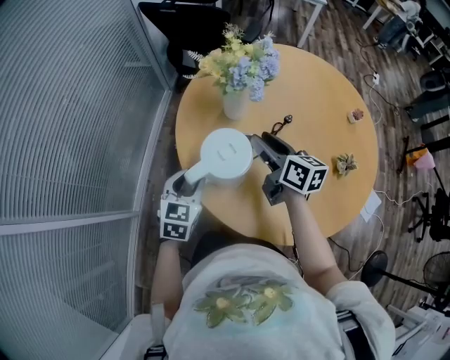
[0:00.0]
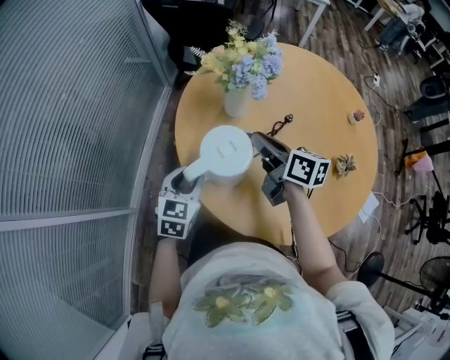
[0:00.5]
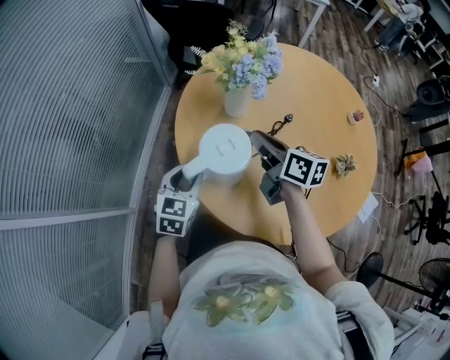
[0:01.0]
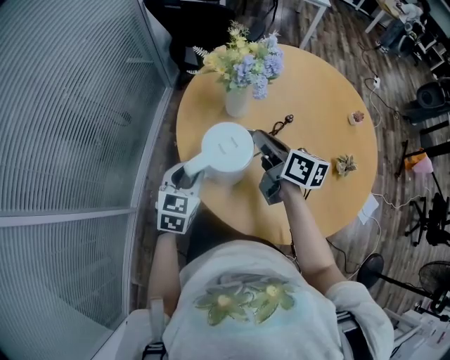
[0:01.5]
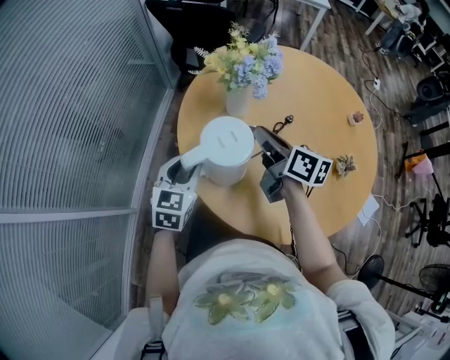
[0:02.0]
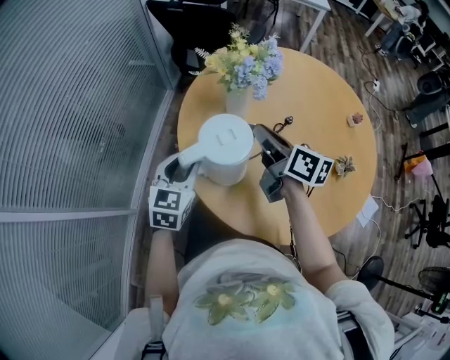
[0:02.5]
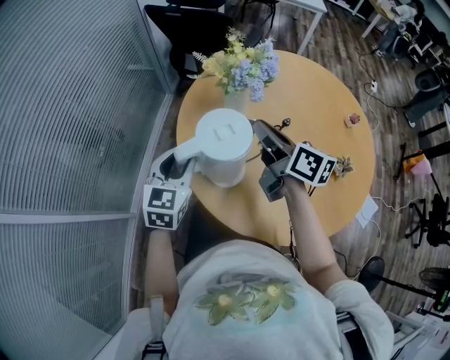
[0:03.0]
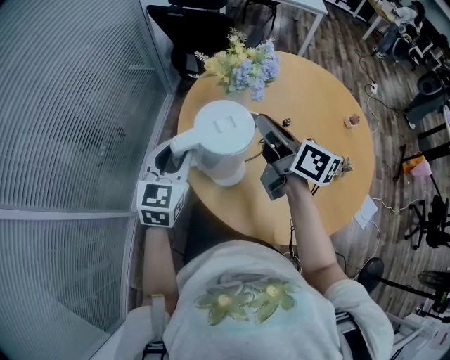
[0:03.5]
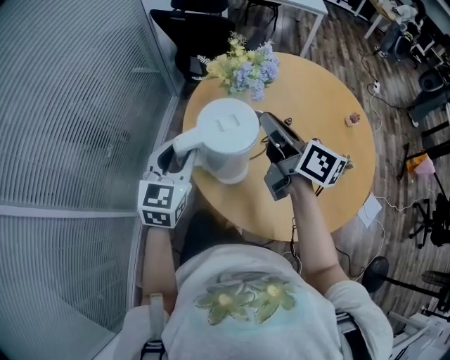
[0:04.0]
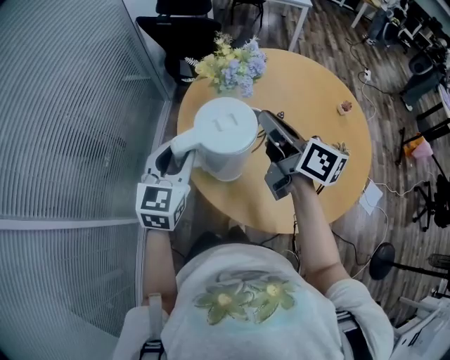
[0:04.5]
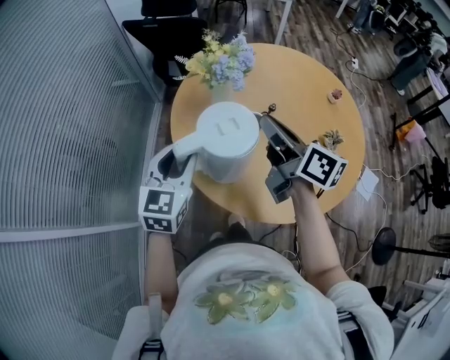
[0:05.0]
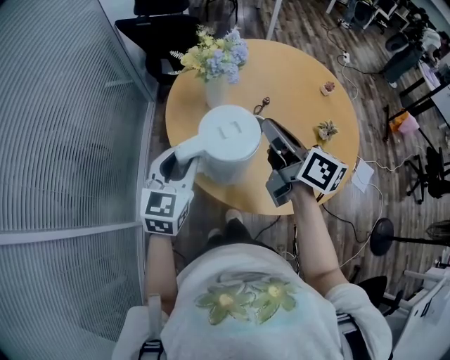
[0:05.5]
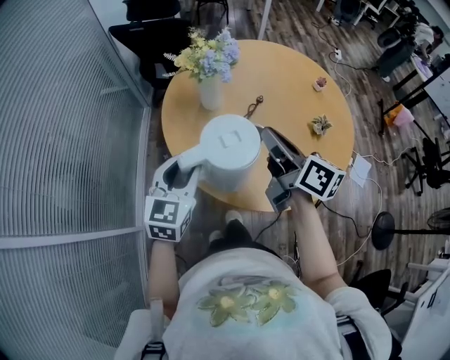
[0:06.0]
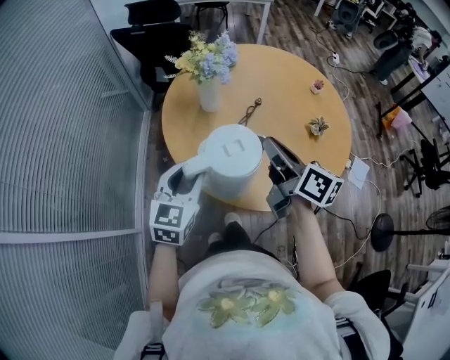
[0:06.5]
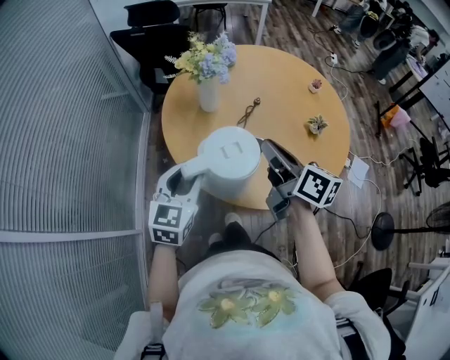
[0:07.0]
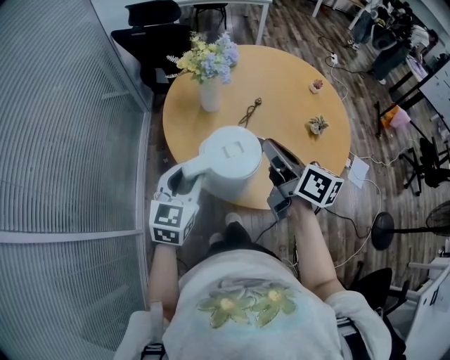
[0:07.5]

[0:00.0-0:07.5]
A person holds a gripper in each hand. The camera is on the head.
0:00.0 to 0:02.0: The right gripper closes.
0:02.0 to 0:04.0: The two grippers go approximately 10 cm upward.
0:04.0 to 0:05.5: The left gripper shifts about 5 cm backward. The right gripper heads backward, covering some 10 cm.
0:05.5 to 0:07.5: The two grippers go approximately 5 cm backward.

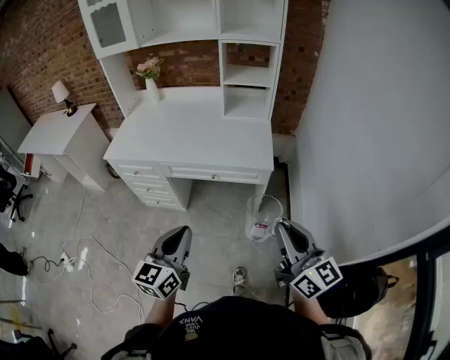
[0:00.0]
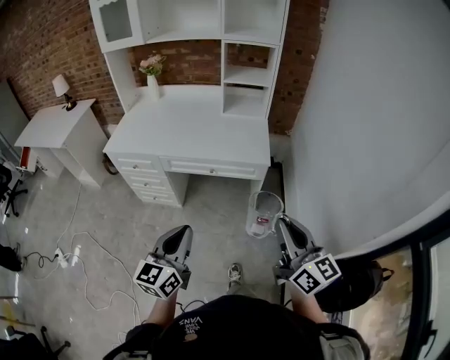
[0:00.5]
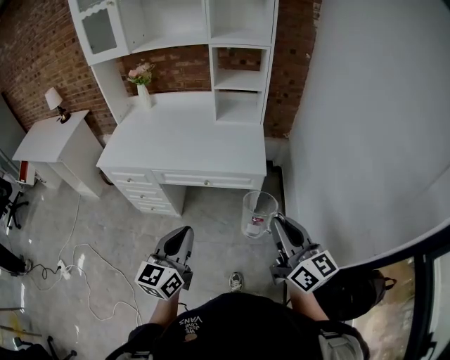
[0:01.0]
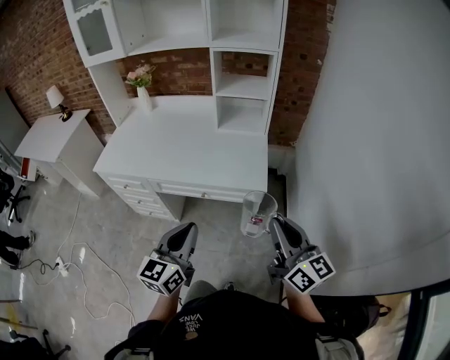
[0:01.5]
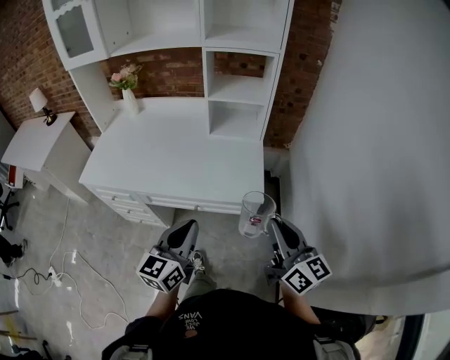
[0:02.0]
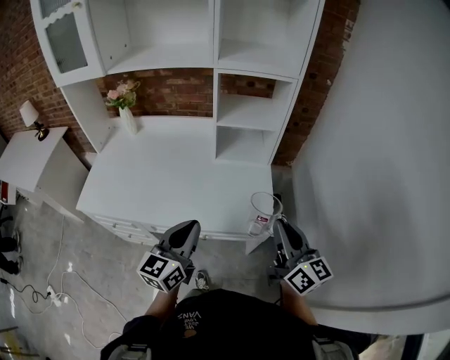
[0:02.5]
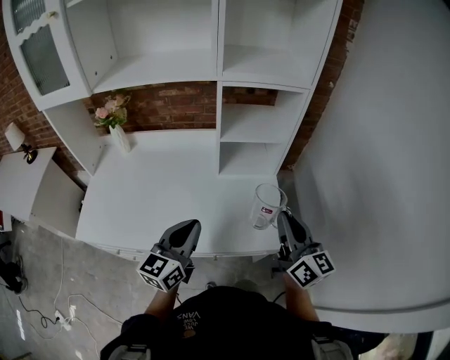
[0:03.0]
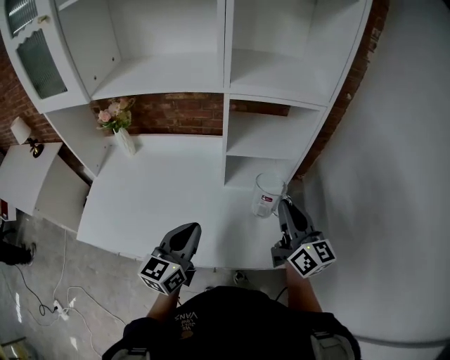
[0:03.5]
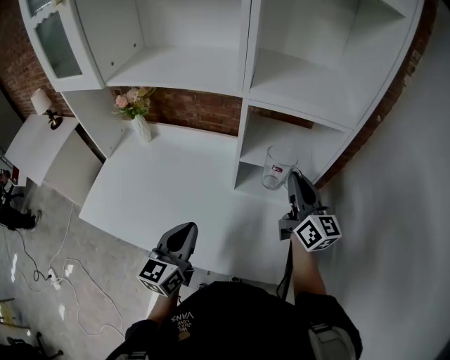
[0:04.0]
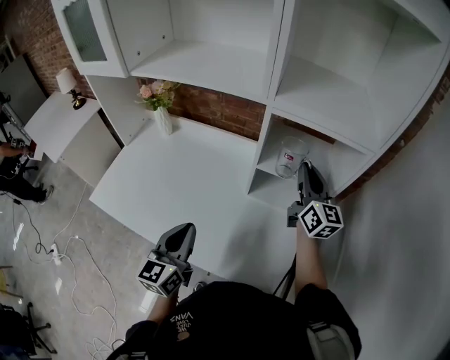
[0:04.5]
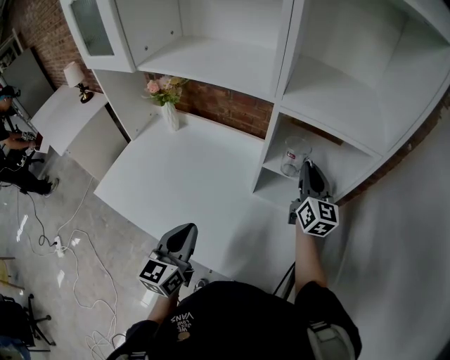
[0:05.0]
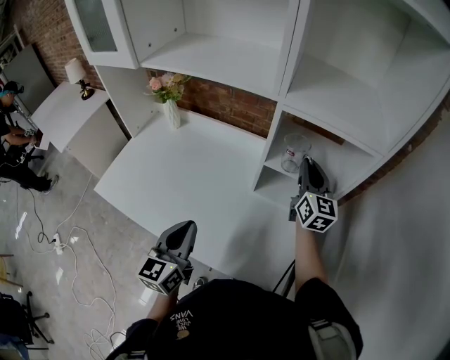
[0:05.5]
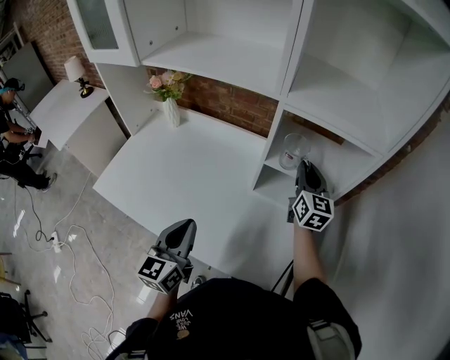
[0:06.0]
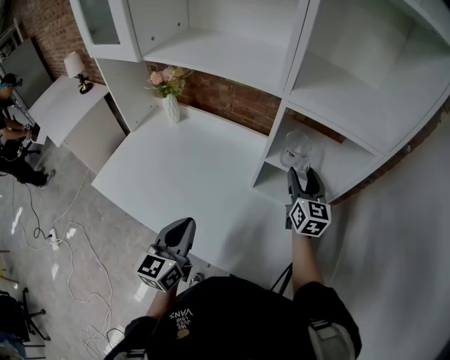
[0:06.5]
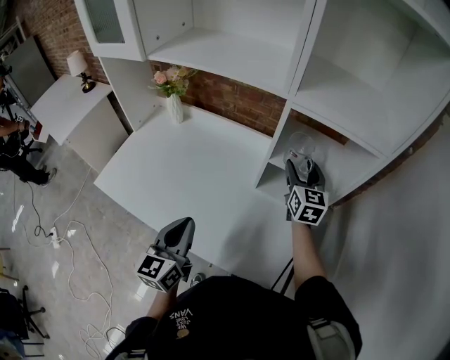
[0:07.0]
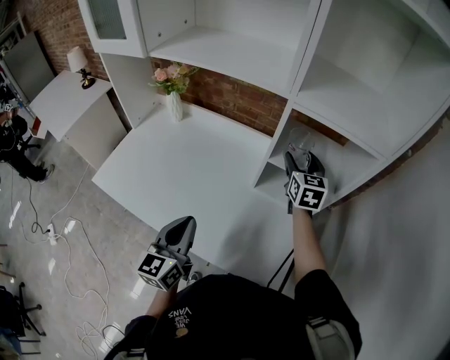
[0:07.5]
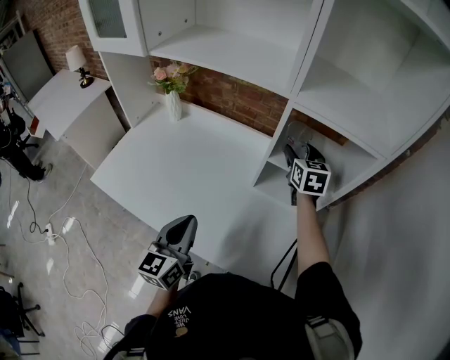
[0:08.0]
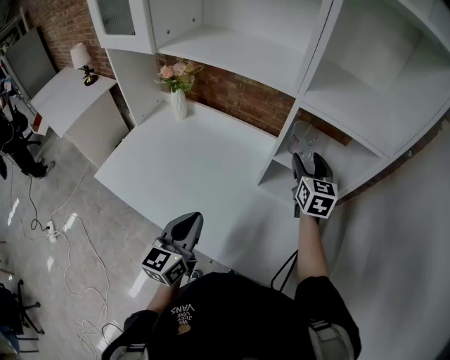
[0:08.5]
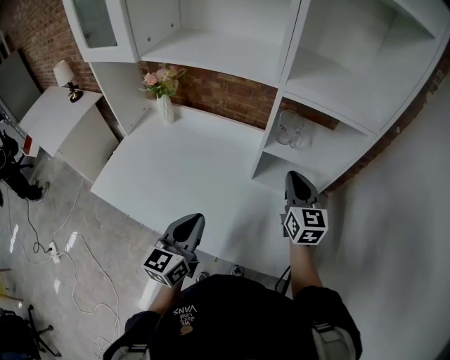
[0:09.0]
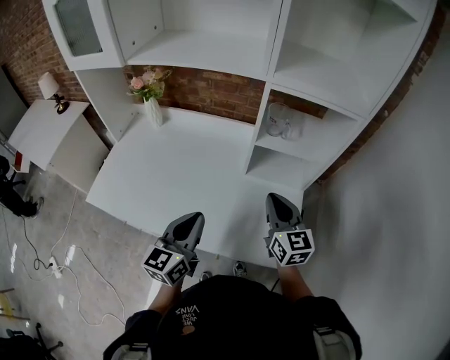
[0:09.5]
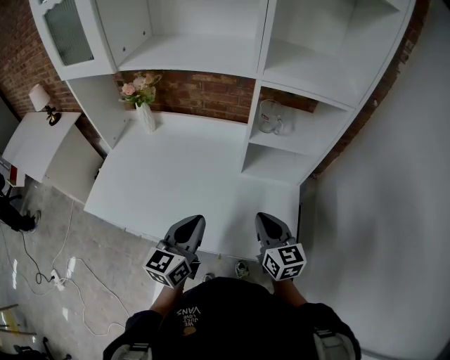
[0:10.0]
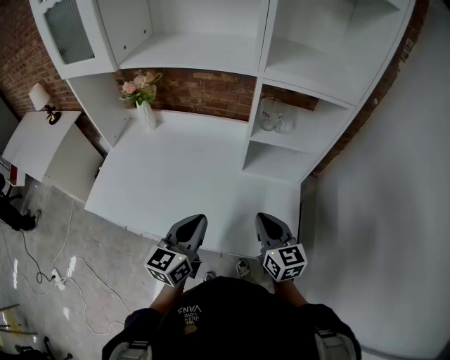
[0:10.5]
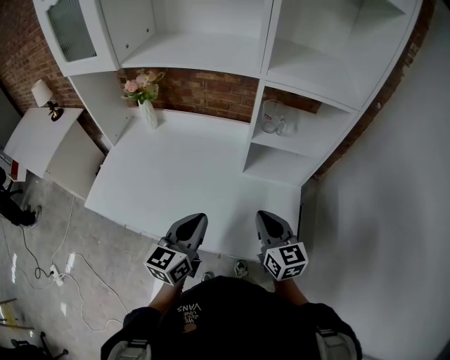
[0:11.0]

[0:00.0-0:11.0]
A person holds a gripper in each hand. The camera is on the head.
0:00.0 to 0:02.0: The grippers both shift forward by some 20 cm.
0:02.0 to 0:03.5: The left gripper heads forward and to the left, covering some 30 cm. Meanwhile the right gripper goes approximately 35 cm forward.
0:03.5 to 0:05.5: The right gripper is displaced forward by some 25 cm, while the left gripper changes its angle by roughly 30 degrees.
0:05.5 to 0:07.5: The right gripper ends up roughly 5 cm from where it was, turns by approximately 20 degrees, and opens up.
0:07.5 to 0:09.0: The right gripper moves backward, roughly 15 cm, and closes its fingers.
0:09.0 to 0:11.0: The right gripper travels backward and downward by about 15 cm.

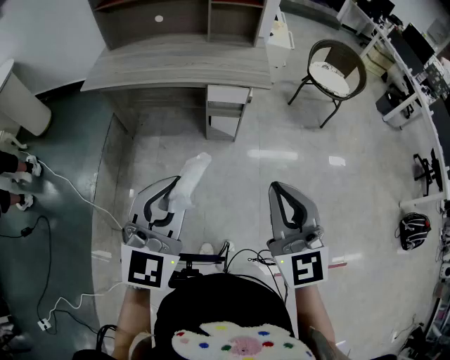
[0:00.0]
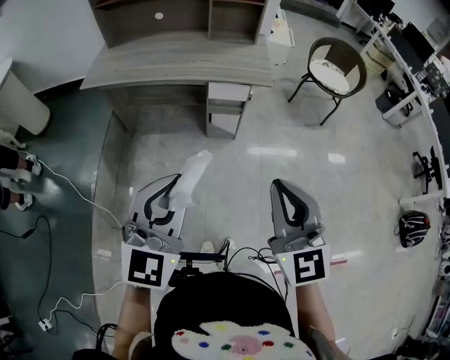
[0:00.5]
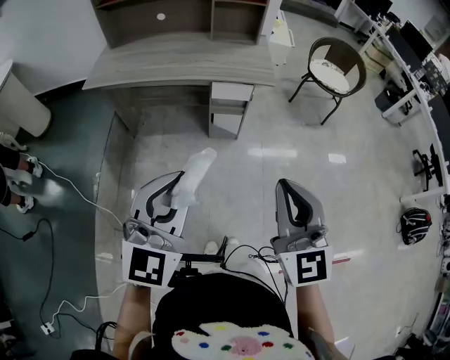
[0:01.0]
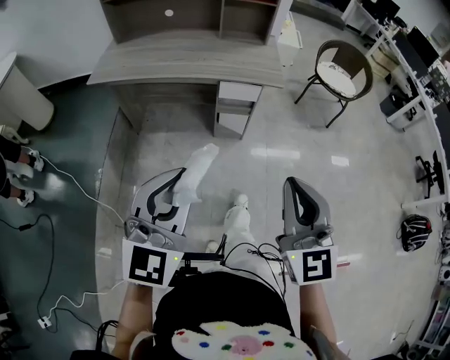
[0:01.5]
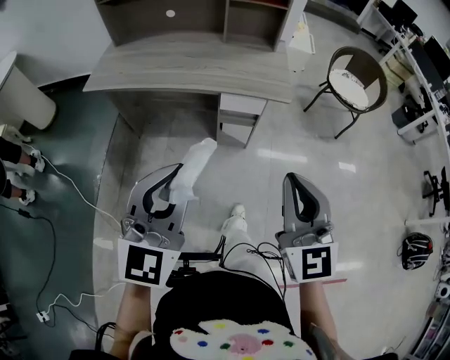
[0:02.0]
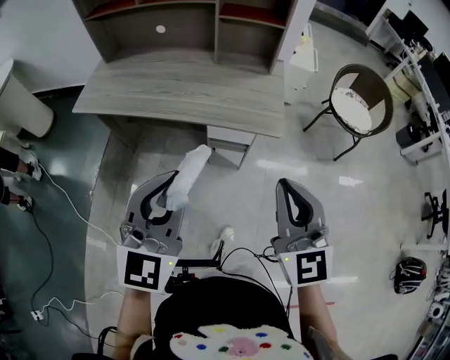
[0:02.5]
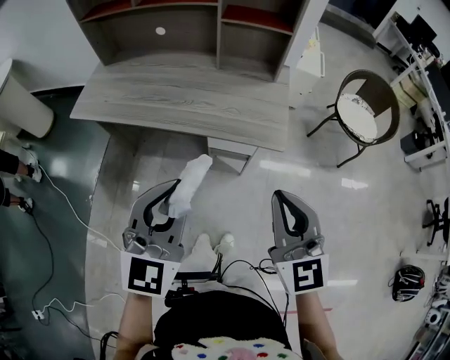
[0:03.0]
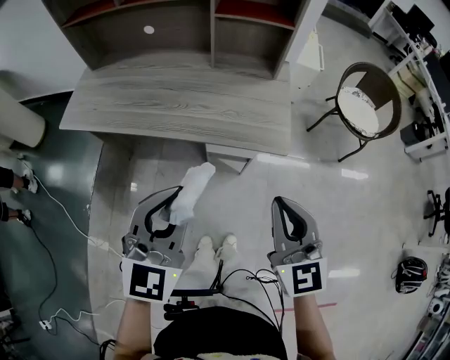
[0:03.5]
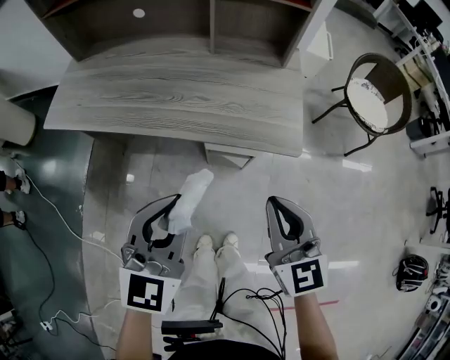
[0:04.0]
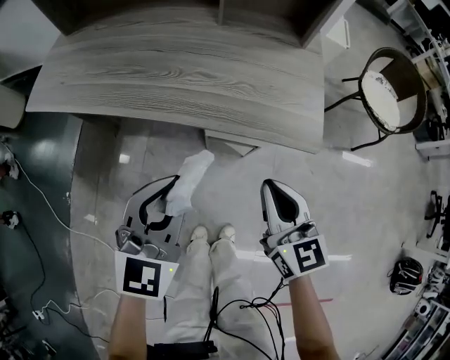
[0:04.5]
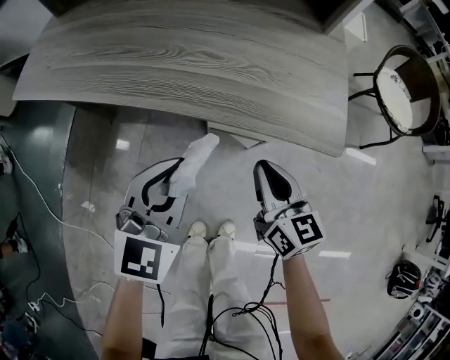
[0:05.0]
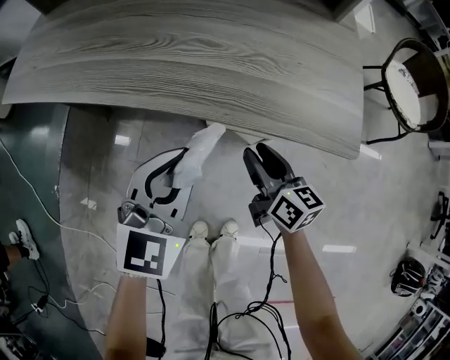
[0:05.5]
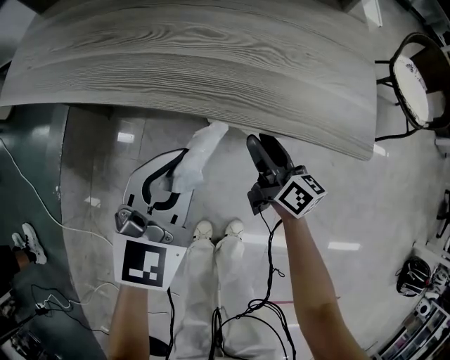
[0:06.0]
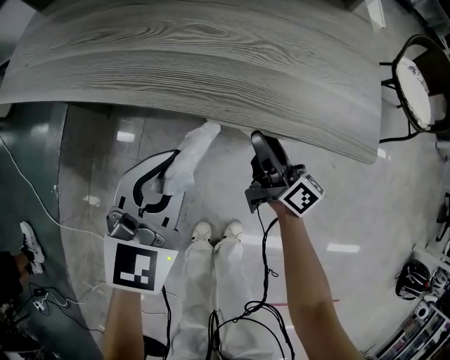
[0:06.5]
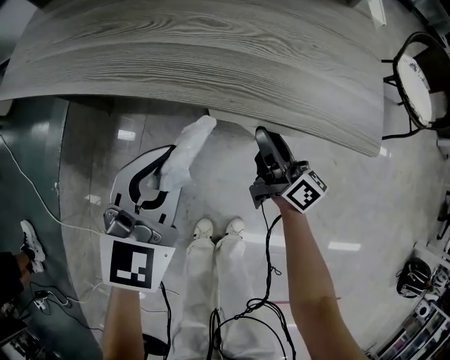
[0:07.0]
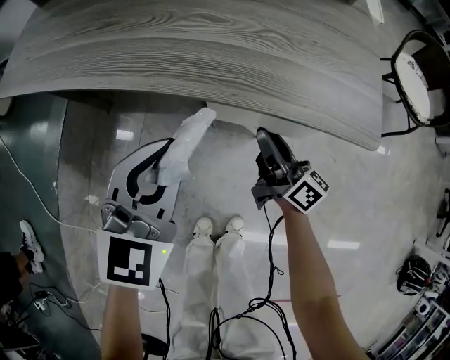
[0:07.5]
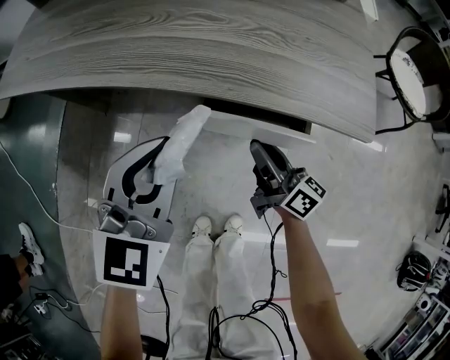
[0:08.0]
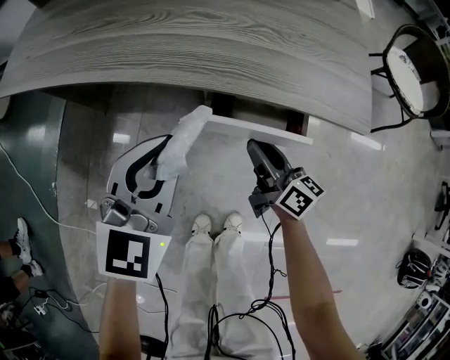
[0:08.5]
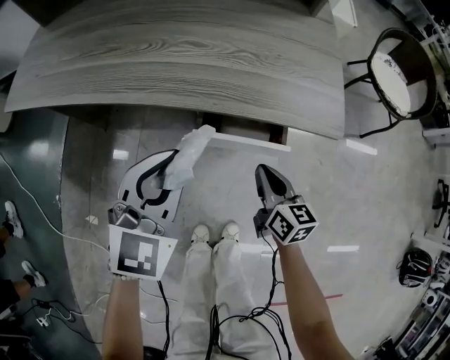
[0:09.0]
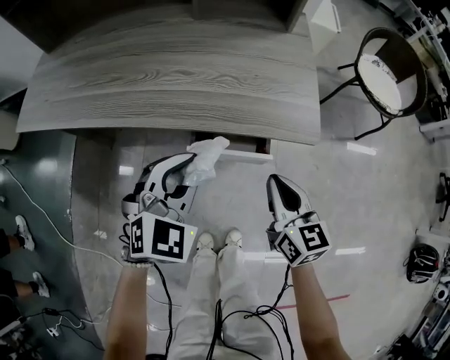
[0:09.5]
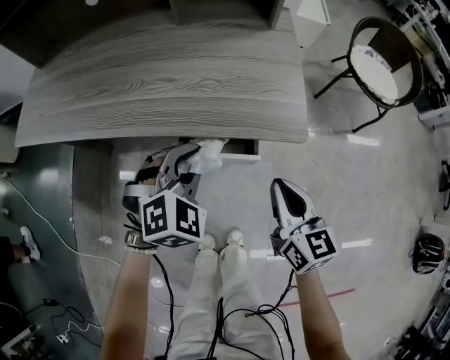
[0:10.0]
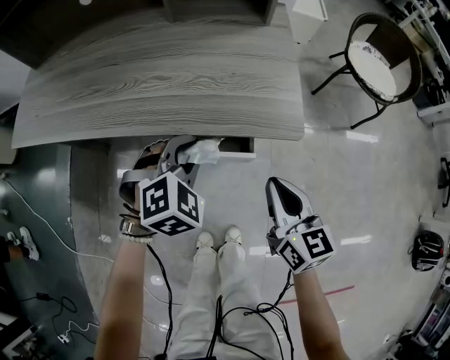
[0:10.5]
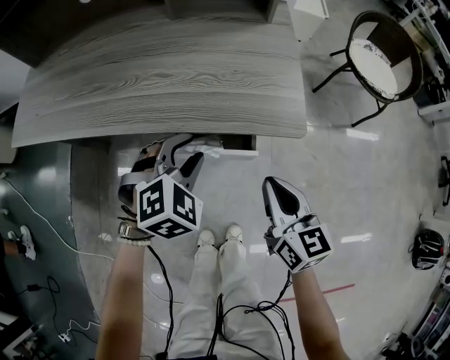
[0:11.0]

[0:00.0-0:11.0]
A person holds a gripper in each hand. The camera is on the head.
0:00.0 to 0:02.0: The two grippers go about 15 cm forward.
0:02.0 to 0:03.5: Both grippers move forward, some 25 cm.
0:03.5 to 0:05.5: The two grippers go some 40 cm downward and forward. The right gripper twists approximately 40 degrees clockwise, seen from behind, and opens up.
0:05.5 to 0:07.5: The right gripper swivels approximately 30 degrees.
0:07.5 to 0:09.0: The right gripper heads backward, covering about 10 cm, turns by some 40 degrees, and closes.
0:09.0 to 0:11.0: The left gripper shifts approximately 10 cm to the right, rotates approximately 40 degrees, and opens up; the right gripper moves upward, some 15 cm.
